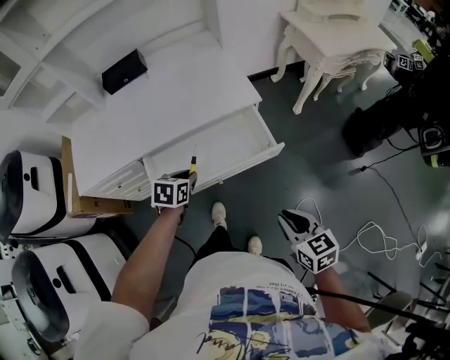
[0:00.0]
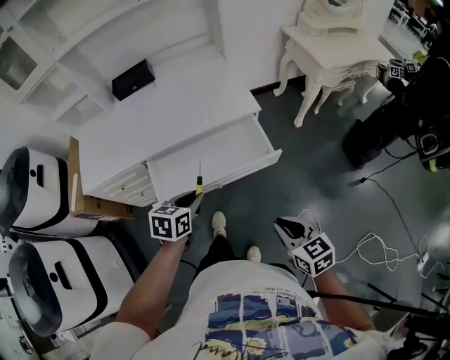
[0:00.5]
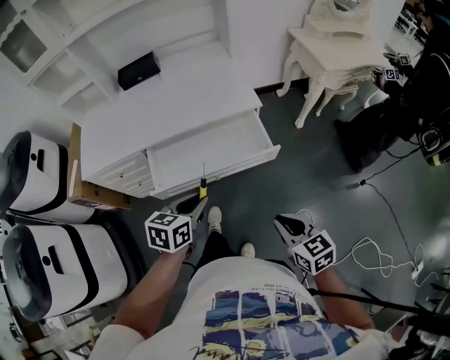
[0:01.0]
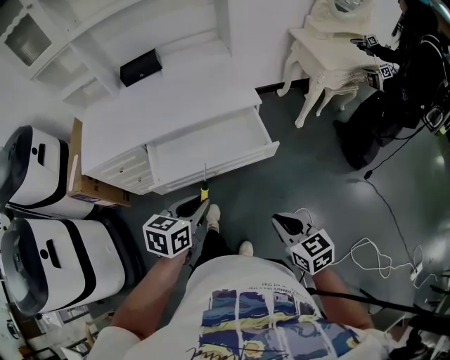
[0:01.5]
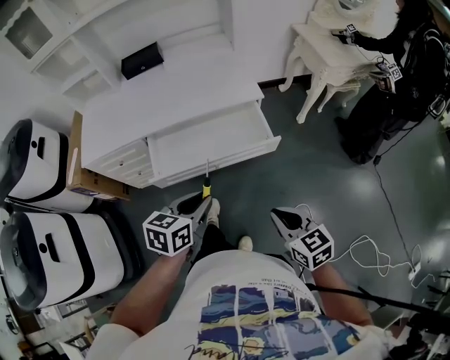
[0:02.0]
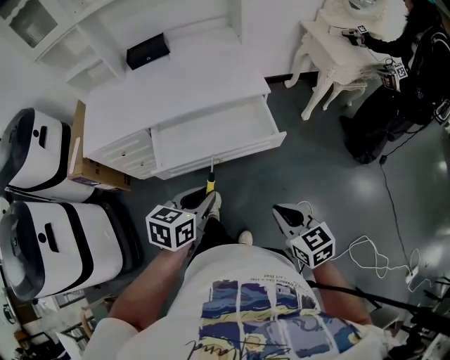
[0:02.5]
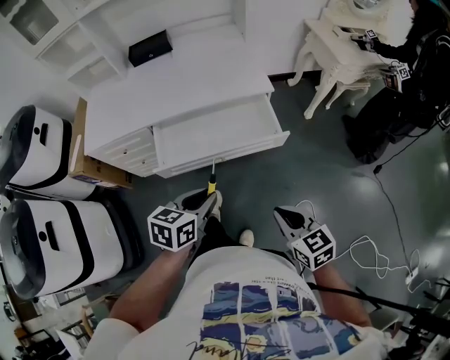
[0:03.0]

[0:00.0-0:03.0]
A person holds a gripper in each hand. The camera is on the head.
0:00.0 to 0:01.5: The left gripper goes some 20 cm backward, upward and to the right; the right gripper travels backward by approximately 5 cm.
0:01.5 to 0:03.0: The grippers make only small movements.

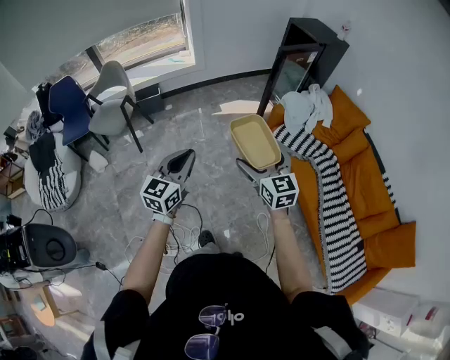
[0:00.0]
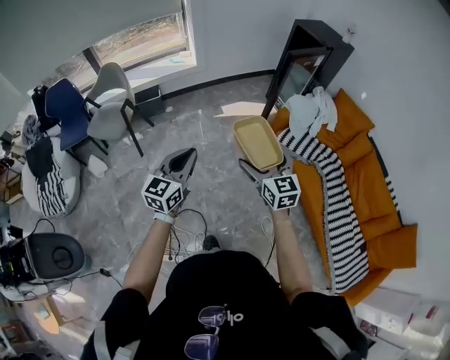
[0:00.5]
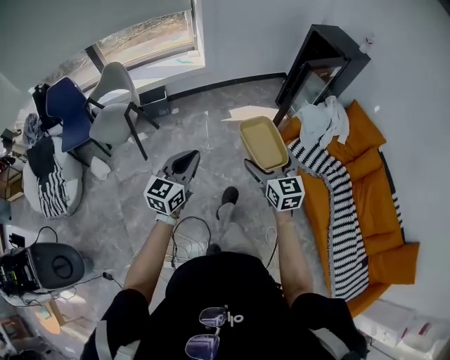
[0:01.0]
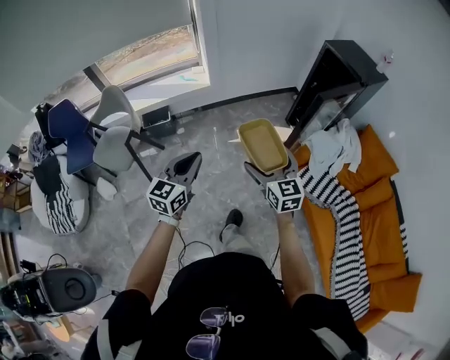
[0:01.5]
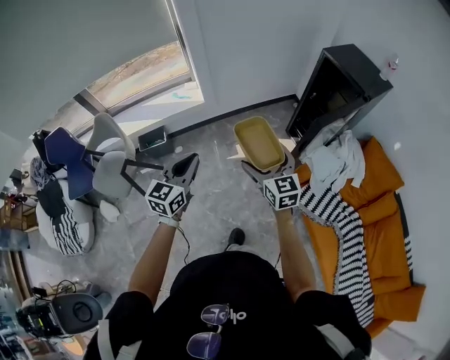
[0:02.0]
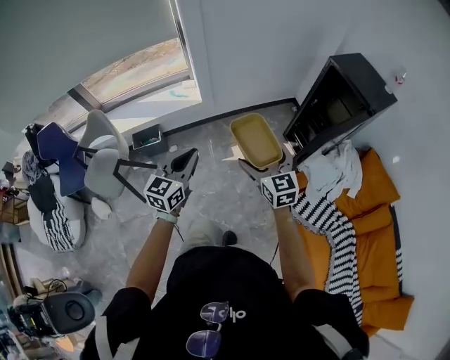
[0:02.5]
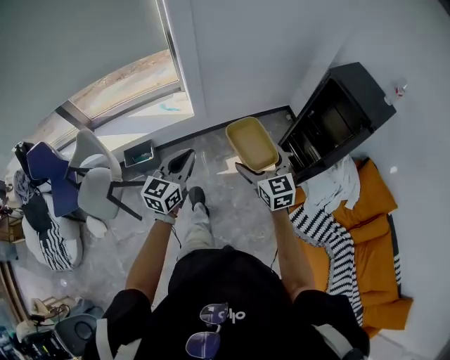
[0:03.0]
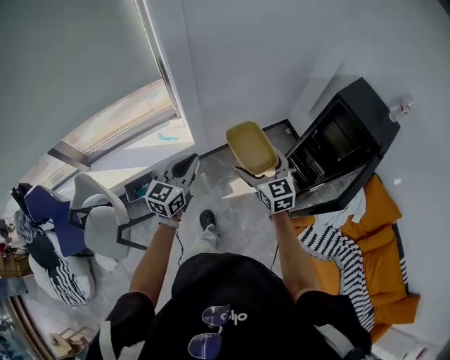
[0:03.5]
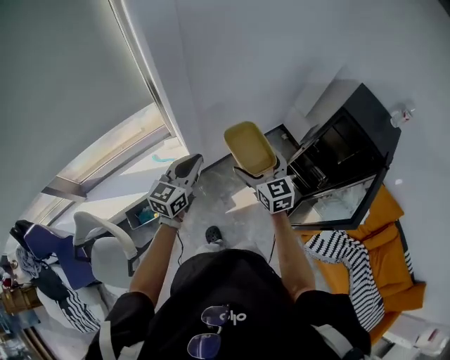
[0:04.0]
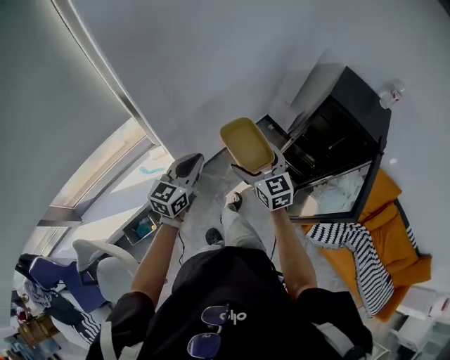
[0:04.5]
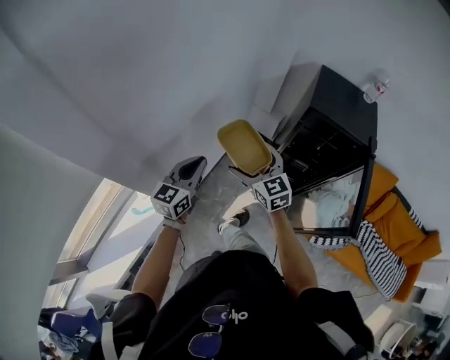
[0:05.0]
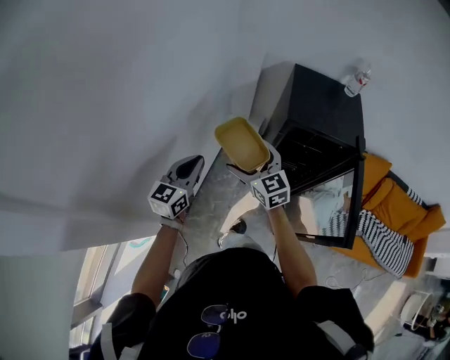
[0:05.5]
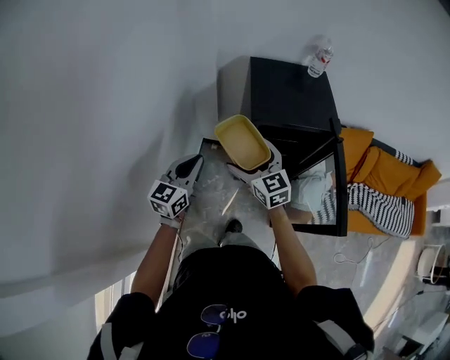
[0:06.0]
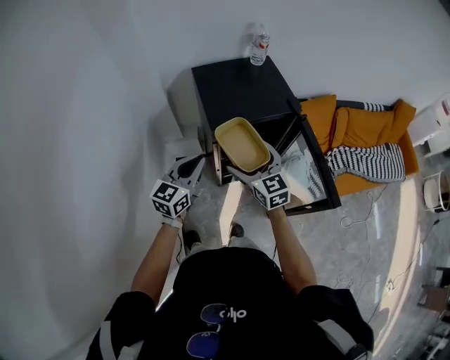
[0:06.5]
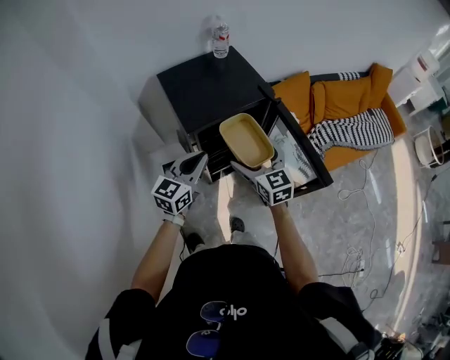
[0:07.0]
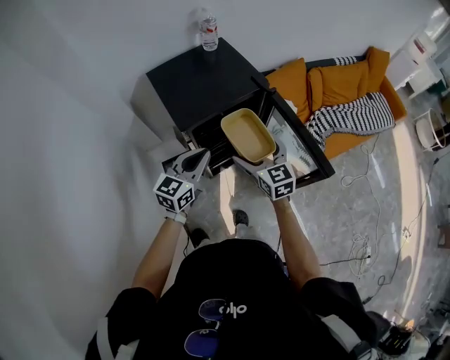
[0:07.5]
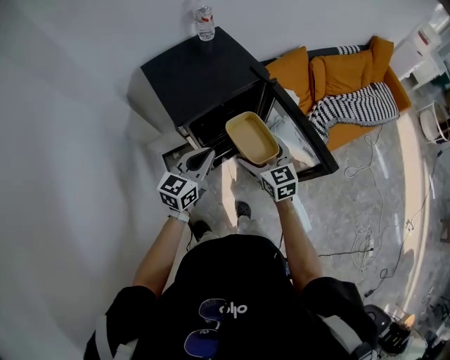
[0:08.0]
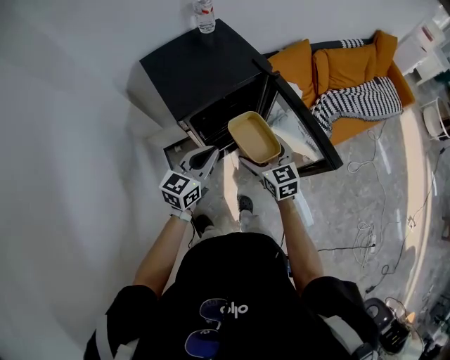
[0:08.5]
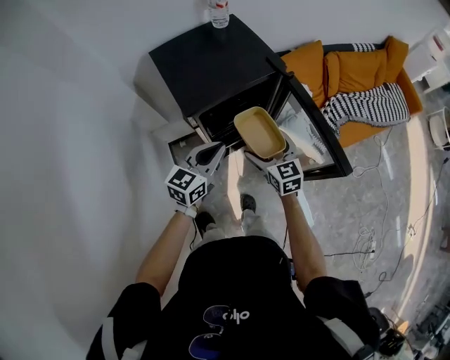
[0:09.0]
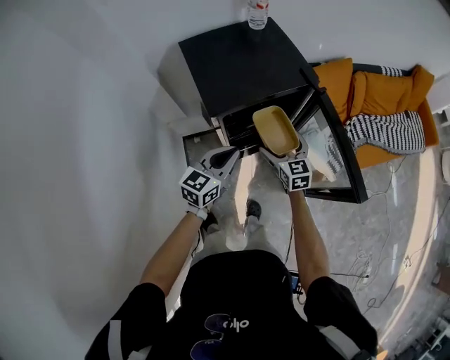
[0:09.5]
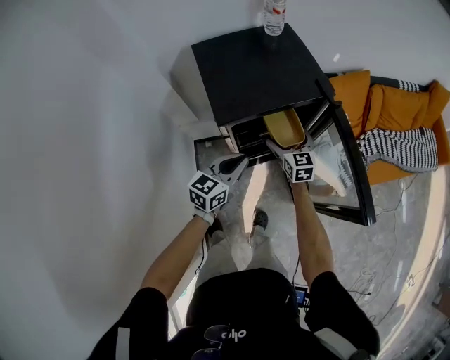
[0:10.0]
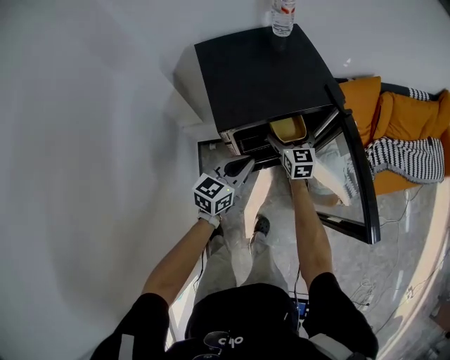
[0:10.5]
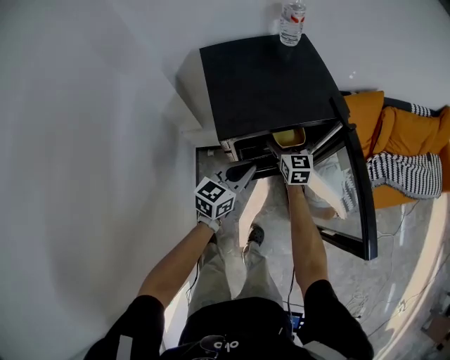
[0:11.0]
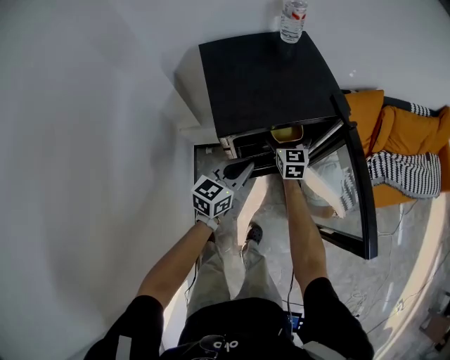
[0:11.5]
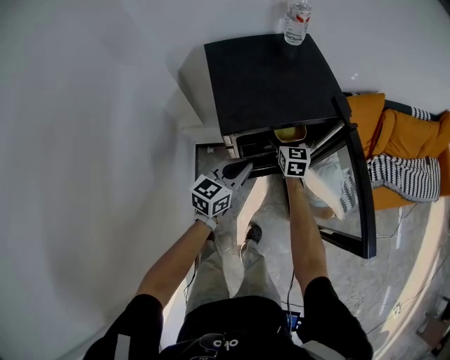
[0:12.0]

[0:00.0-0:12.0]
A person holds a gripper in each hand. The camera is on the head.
0:00.0 to 0:02.0: The two grippers travel together, forward, about 50 cm.
0:02.0 to 0:04.0: Both grippers are carried forward, about 50 cm.
0:04.0 to 0:06.0: Both grippers are carried roughly 50 cm. The right gripper rotates about 40 degrees. Meanwhile the left gripper changes its angle by about 50 degrees.
0:06.0 to 0:08.0: The left gripper moves approximately 25 cm, and changes its angle by some 40 degrees; the right gripper moves about 25 cm, and changes its angle by some 40 degrees.
0:08.0 to 0:10.0: The left gripper goes roughly 10 cm downward. Meanwhile the right gripper moves forward, downward and to the left, approximately 20 cm.
0:10.0 to 0:12.0: The right gripper travels forward by some 10 cm.

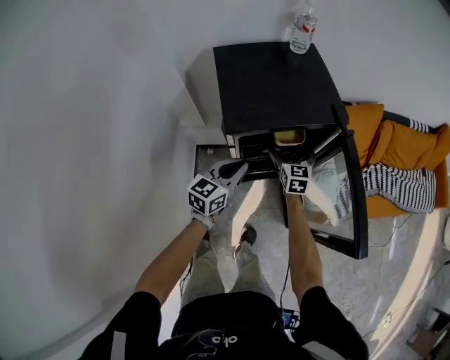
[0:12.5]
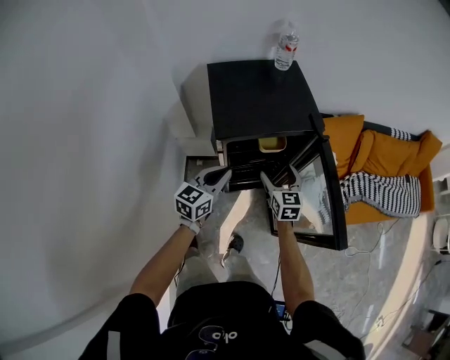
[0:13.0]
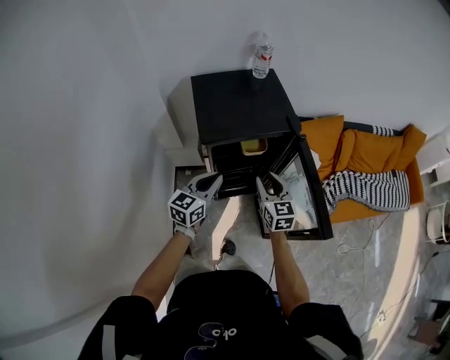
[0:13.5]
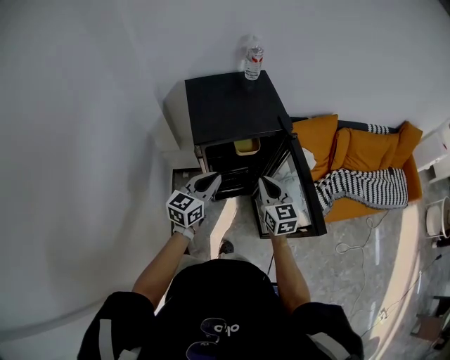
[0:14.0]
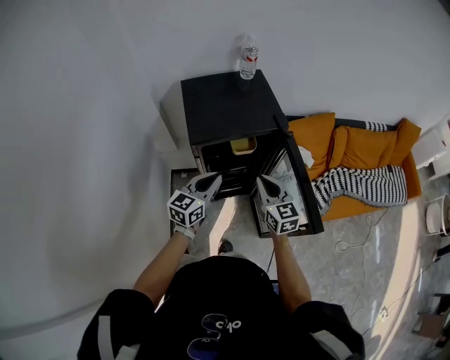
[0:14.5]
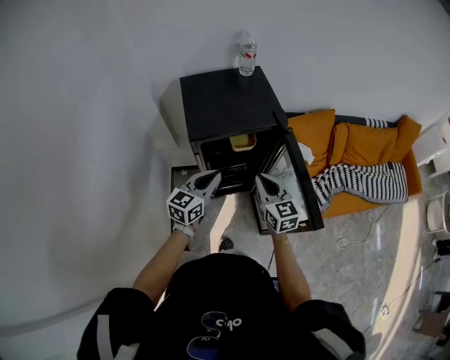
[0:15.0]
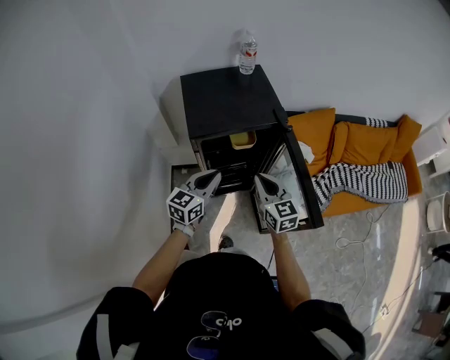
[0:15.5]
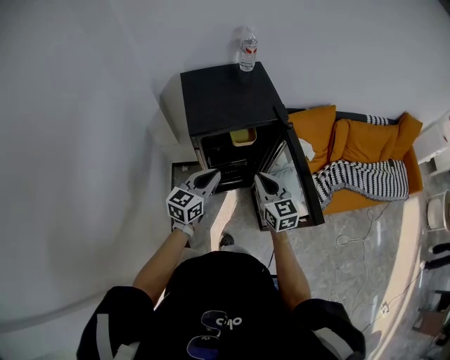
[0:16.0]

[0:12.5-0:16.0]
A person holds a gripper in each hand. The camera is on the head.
0:12.5 to 0:14.5: The right gripper is displaced upward and backward by approximately 25 cm, and closes. Meanwhile the left gripper shifts approximately 10 cm upward, backward and to the right.
0:14.5 to 0:16.0: The grippers move only a little.

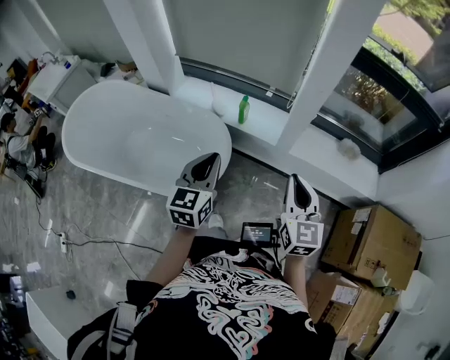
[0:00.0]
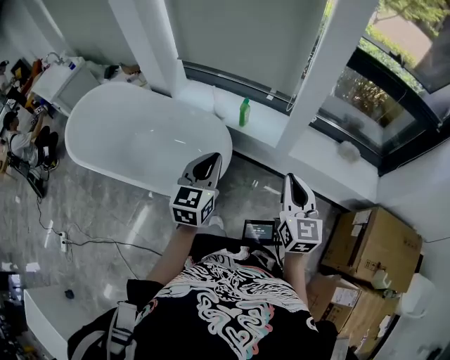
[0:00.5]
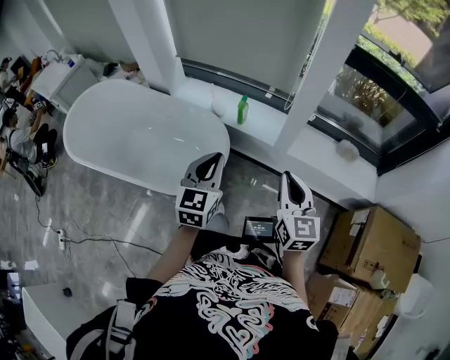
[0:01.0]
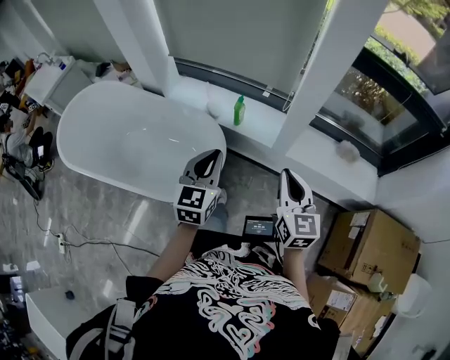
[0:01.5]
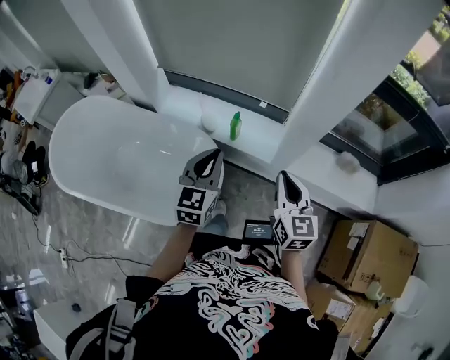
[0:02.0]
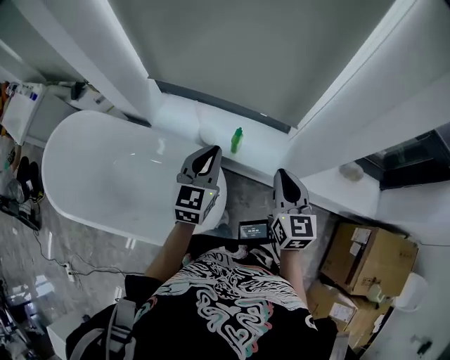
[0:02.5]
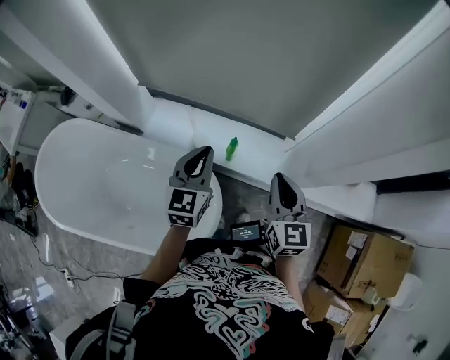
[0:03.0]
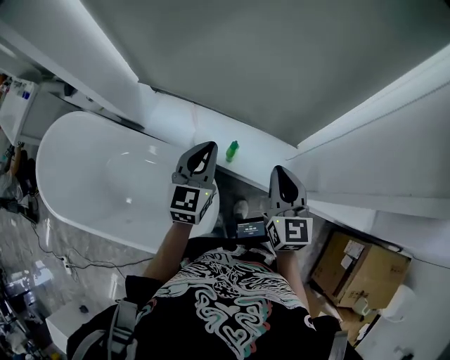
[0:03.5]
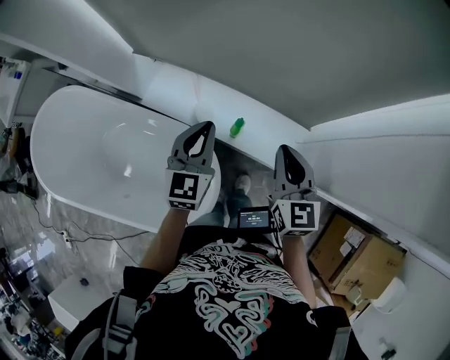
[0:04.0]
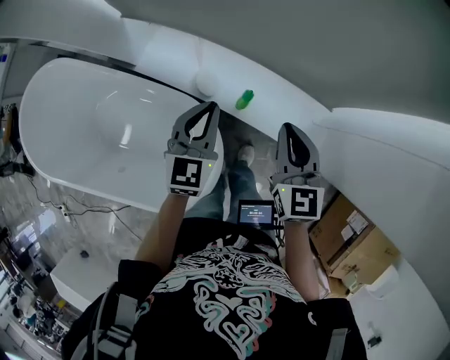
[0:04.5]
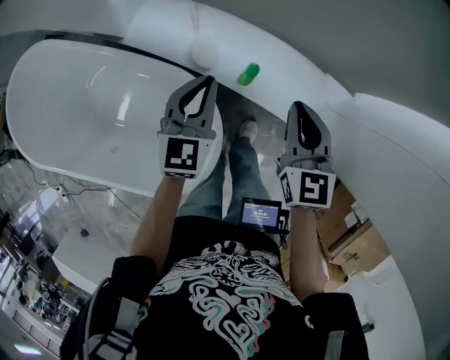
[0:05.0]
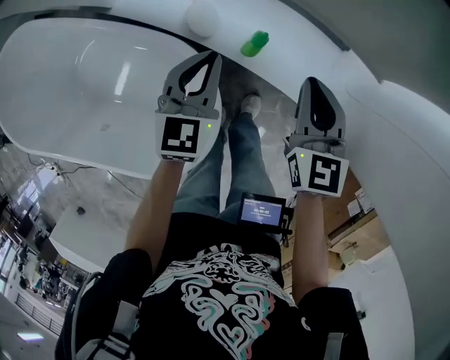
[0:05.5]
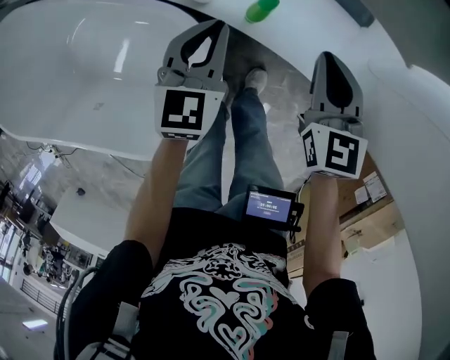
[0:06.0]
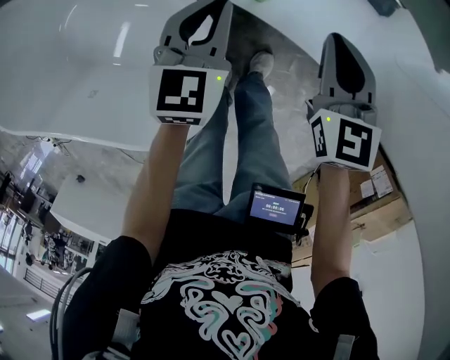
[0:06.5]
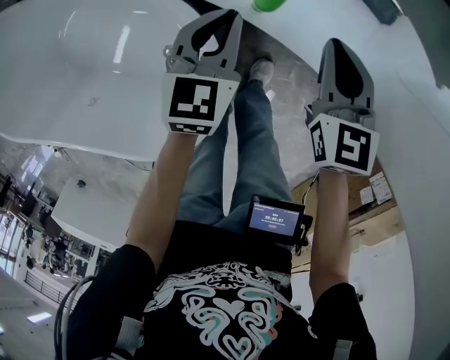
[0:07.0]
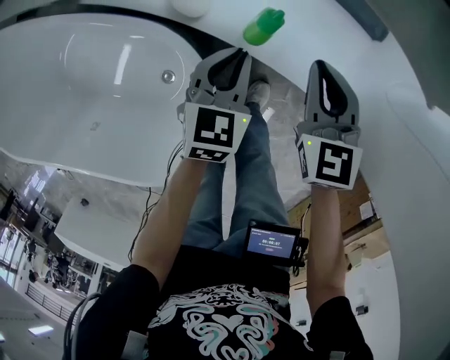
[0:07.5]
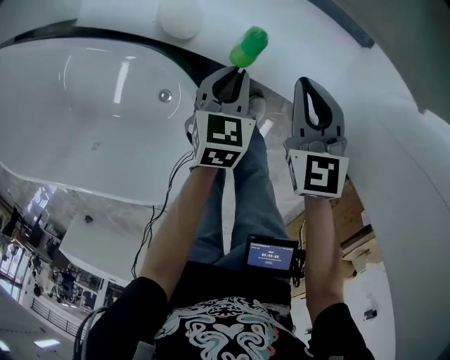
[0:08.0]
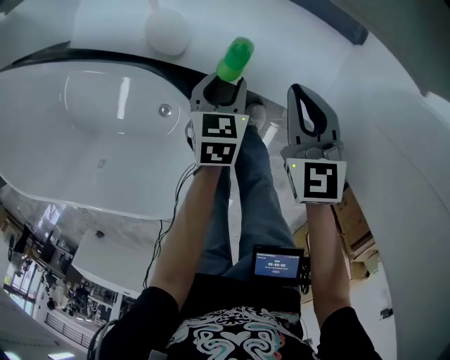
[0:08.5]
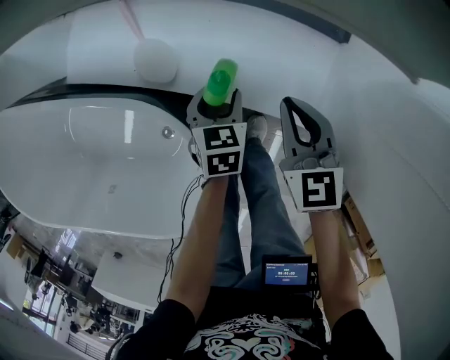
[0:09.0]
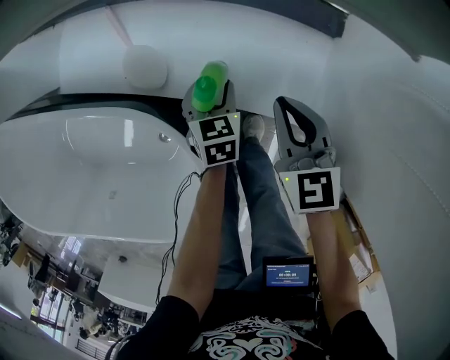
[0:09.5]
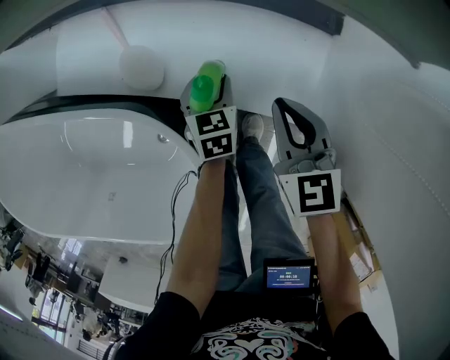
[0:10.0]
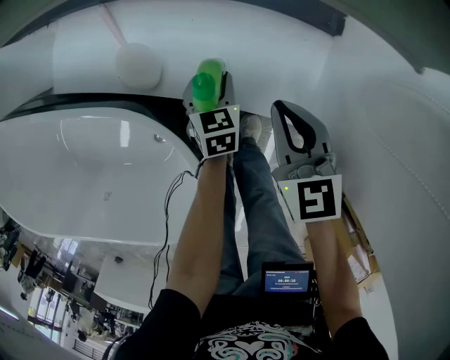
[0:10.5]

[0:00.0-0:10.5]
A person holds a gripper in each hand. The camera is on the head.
0:00.0 to 0:02.0: Both grippers travel together forward, about 20 cm.
0:02.0 to 0:04.0: Both grippers travel together forward, approximately 30 cm.
0:04.0 to 0:06.5: The grippers both shift downward by about 30 cm.
0:06.5 to 0:08.5: The right gripper heads downward, covering roughly 5 cm. The left gripper is displaced downward and to the right by roughly 15 cm, swivels about 20 degrees, and opens its fingers.
0:08.5 to 0:10.5: The left gripper heads downward and forward, covering about 10 cm.
